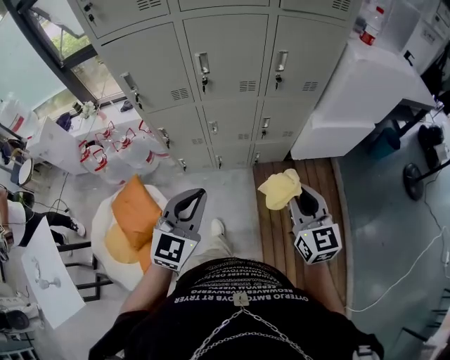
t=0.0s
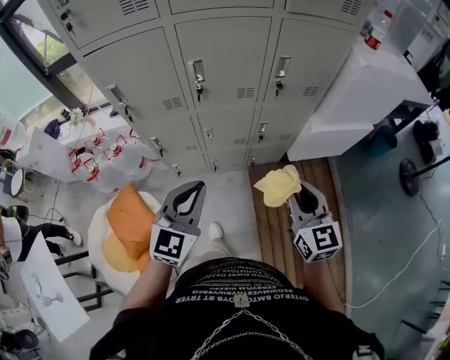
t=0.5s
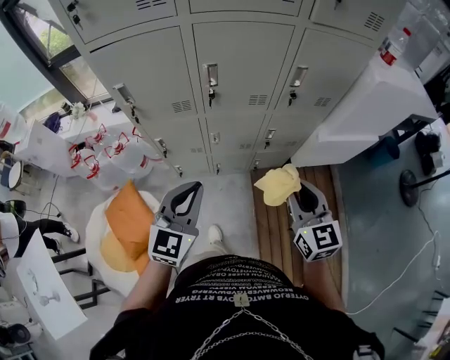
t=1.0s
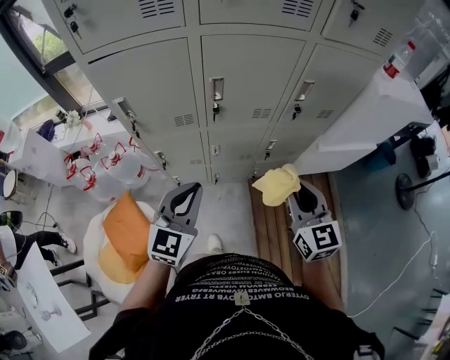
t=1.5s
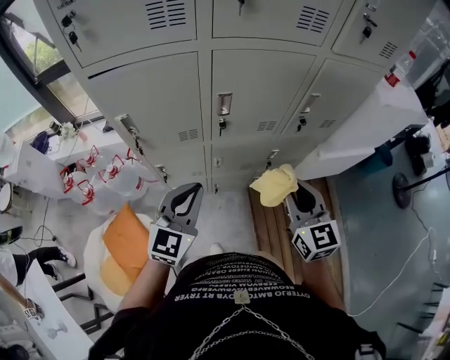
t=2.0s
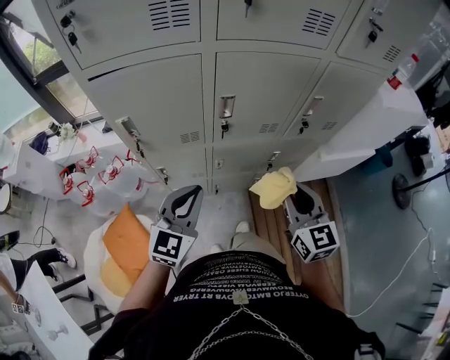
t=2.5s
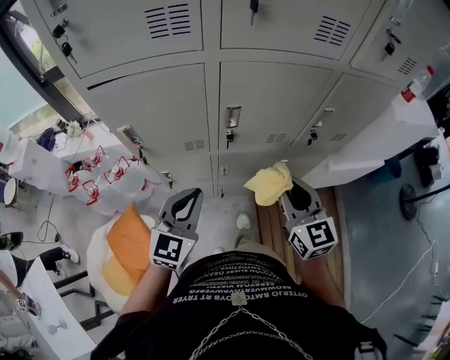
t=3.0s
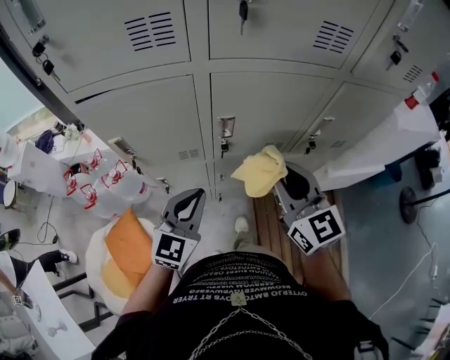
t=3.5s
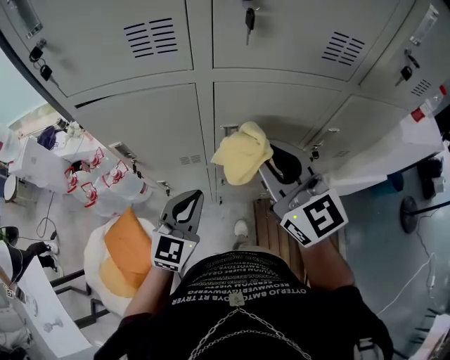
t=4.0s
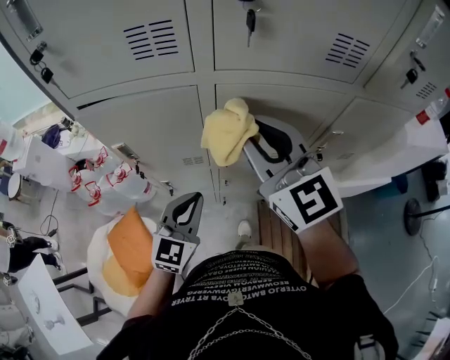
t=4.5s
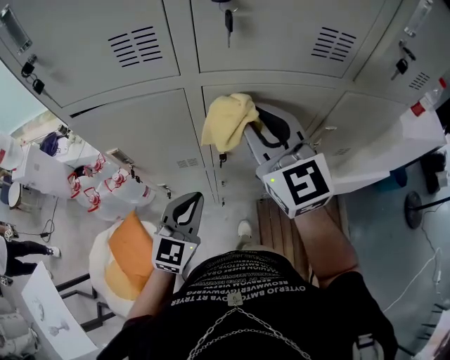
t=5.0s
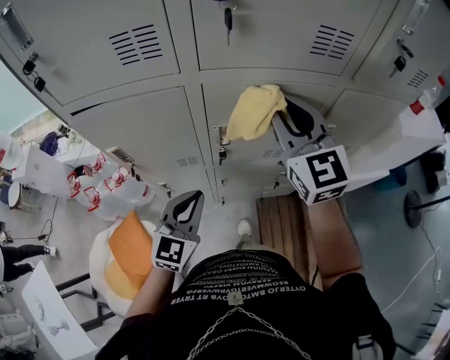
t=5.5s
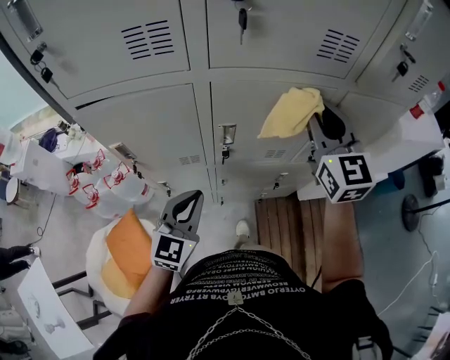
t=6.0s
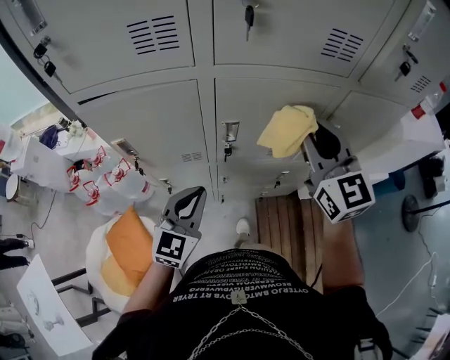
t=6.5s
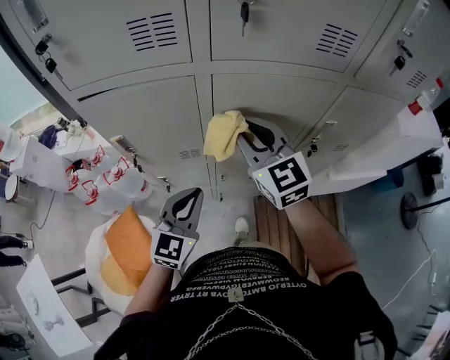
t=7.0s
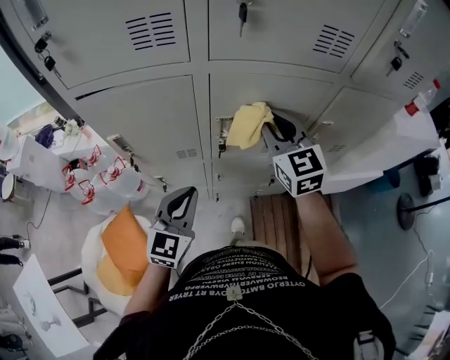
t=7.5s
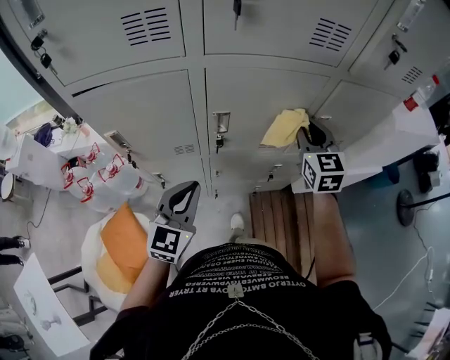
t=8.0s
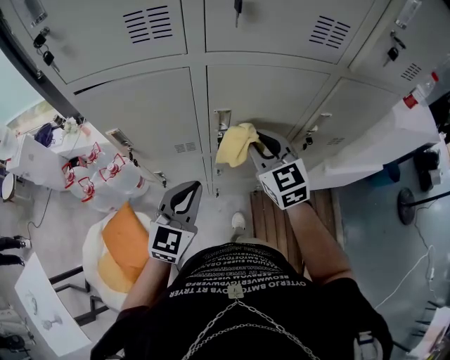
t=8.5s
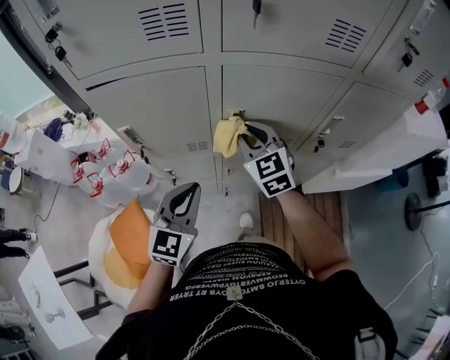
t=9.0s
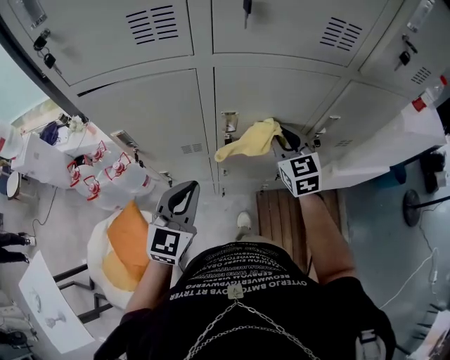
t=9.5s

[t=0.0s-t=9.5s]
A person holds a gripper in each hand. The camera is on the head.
t=0.0s to t=2.0s: The grippers both shift forward and to the left by some 25 cm.
t=2.0s to t=4.0s: The right gripper travels forward, upward and to the left by about 20 cm, and changes its angle by some 30 degrees. The left gripper moves forward, approximately 10 cm.
t=4.0s to t=5.5s: The right gripper travels forward and to the right by roughly 10 cm.
t=5.5s to t=7.5s: The right gripper goes left and right, approximately 15 cm each way, reversing 2 times.
t=7.5s to t=9.5s: The right gripper swings left and right, about 20 cm each way, with 2 reversals.

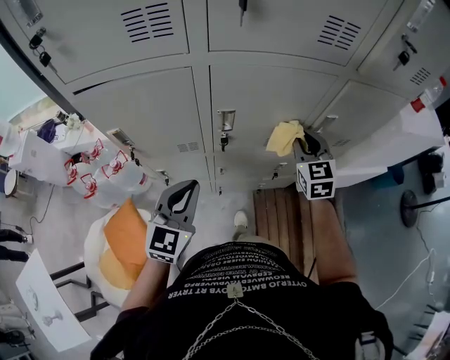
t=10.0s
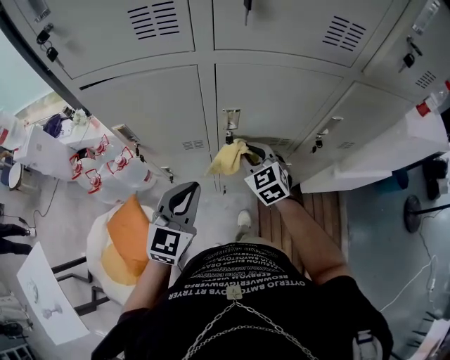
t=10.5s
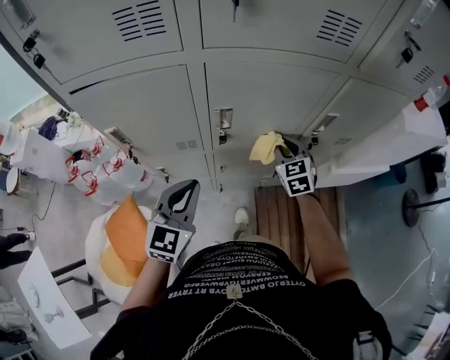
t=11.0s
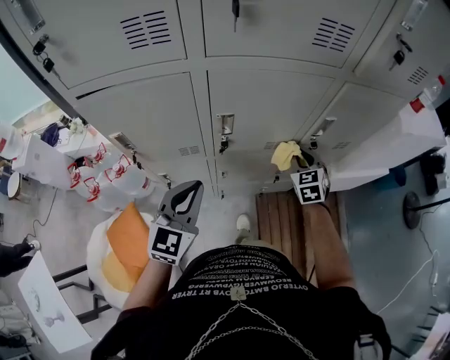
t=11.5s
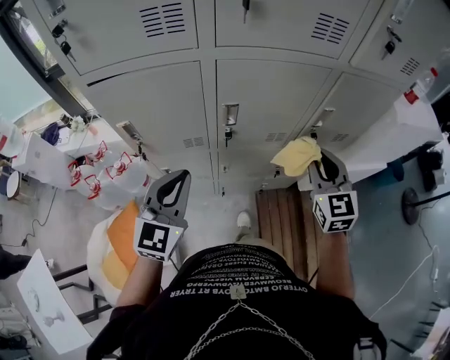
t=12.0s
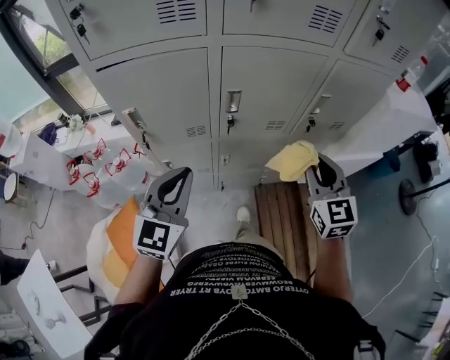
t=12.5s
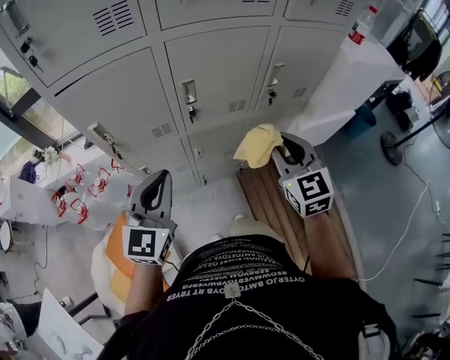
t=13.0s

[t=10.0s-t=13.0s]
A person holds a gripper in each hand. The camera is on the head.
t=10.0s to t=11.5s: The right gripper travels downward by approximately 10 cm, and travels to the left and back again, approximately 15 cm each way.
t=11.5s to t=13.0s: The left gripper shifts approximately 10 cm backward. Meanwhile the right gripper shifts about 25 cm backward and upward.

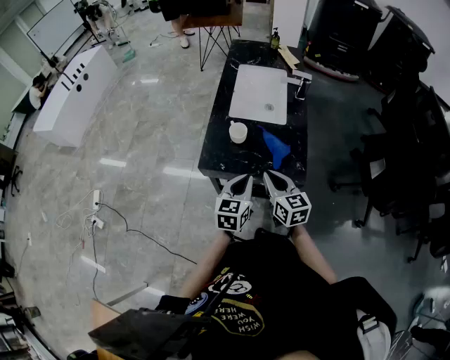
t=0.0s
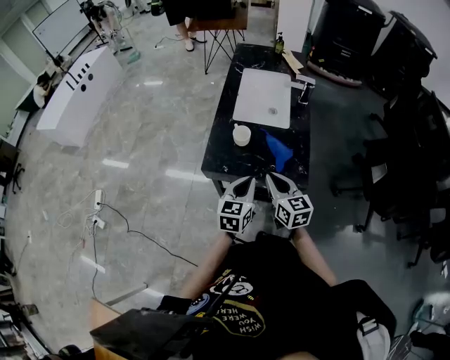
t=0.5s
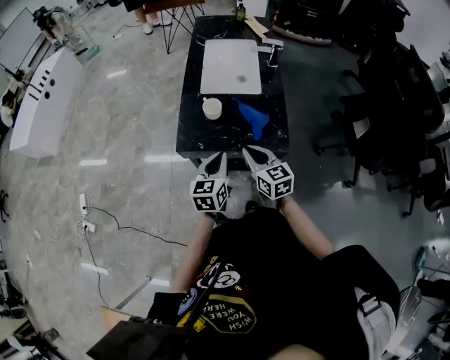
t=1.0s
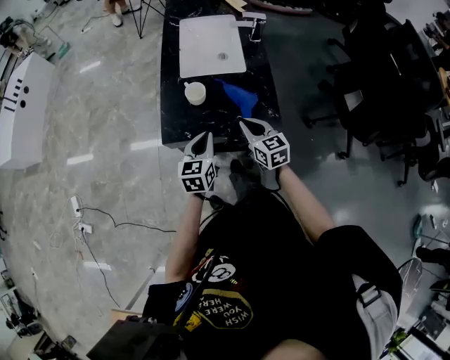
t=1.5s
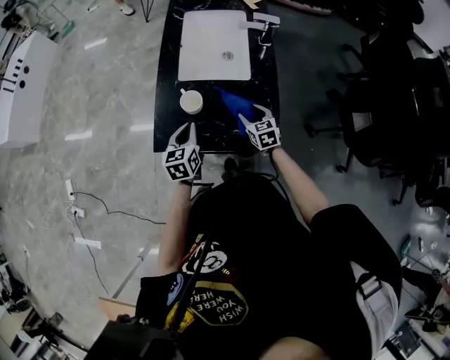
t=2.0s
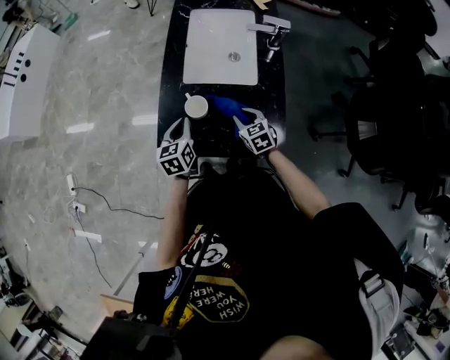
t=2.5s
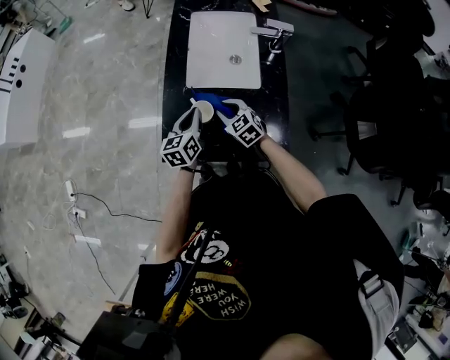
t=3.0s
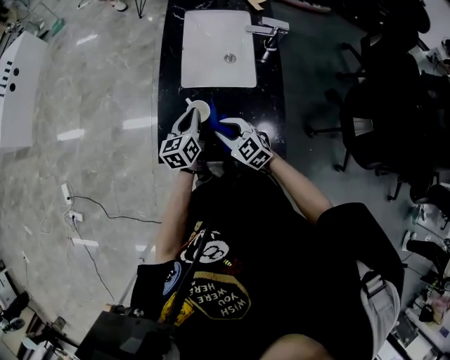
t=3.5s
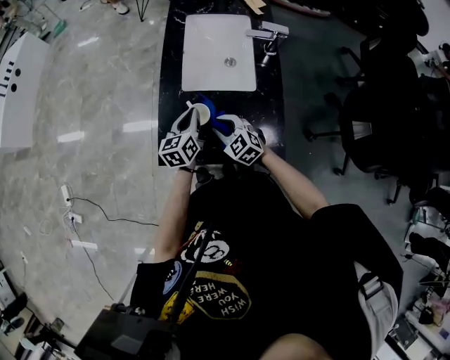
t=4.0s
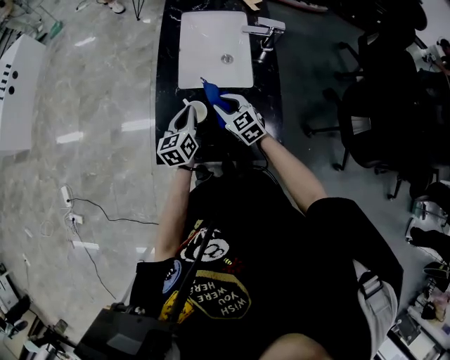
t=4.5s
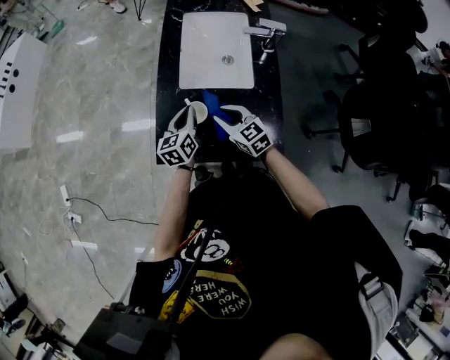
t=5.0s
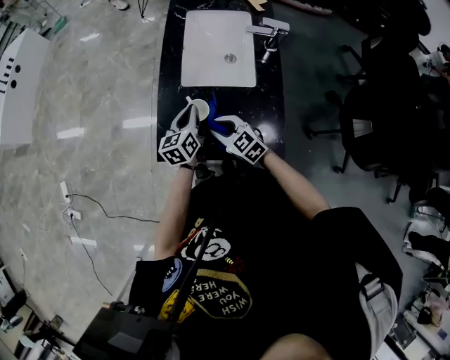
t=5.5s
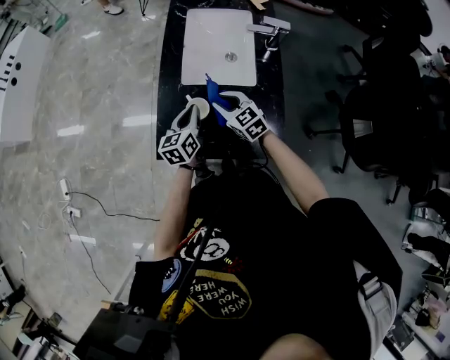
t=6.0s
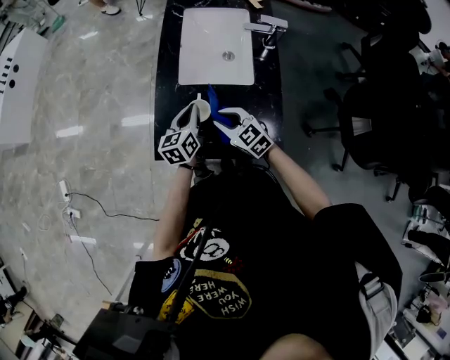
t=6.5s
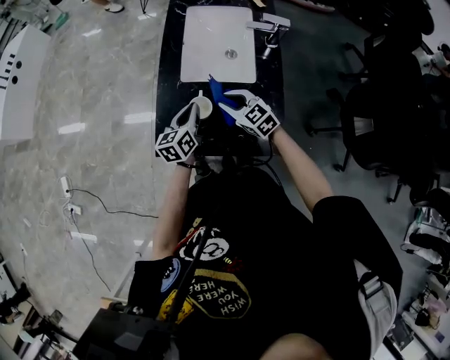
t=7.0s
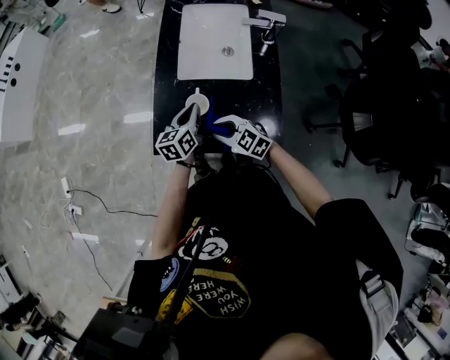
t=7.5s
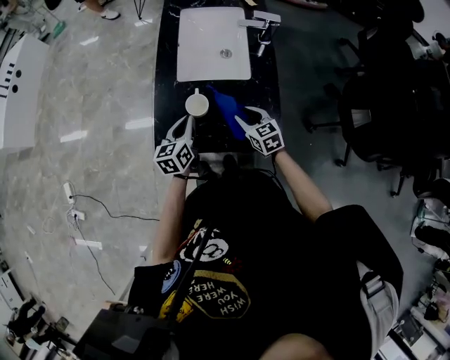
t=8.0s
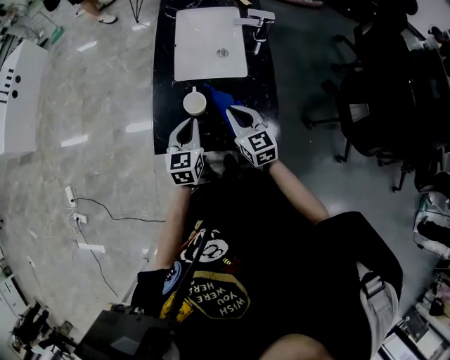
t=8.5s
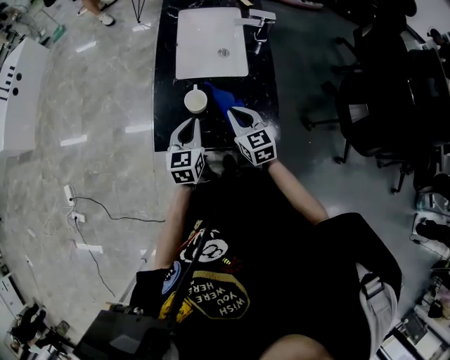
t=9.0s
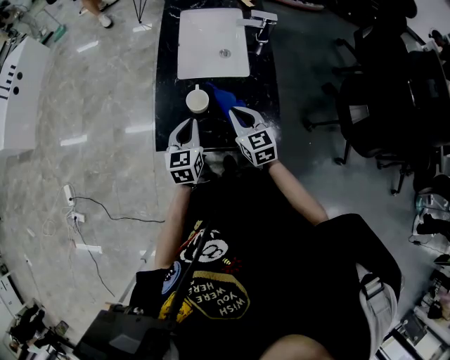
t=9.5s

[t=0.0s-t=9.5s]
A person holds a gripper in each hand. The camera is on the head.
t=0.0s to t=2.0s: The right gripper heads downward, forward and to the right, covering some 30 cm, changes its angle by approximately 30 degrees, and opens; the left gripper shifts about 20 cm forward and downward.
t=2.0s to t=4.0s: The left gripper heads forward, covering some 10 cm. The right gripper heads to the left, covering about 15 cm, swivels approximately 40 degrees, and closes.
t=4.0s to t=5.5s: The right gripper moves about 5 cm forward and comes back.
t=5.5s to t=7.5s: The right gripper moves forward and backward over roughly 10 cm, changing direction 3 times.
t=7.5s to t=9.5s: The right gripper moves upward and to the right, roughly 10 cm, and turns by about 40 degrees; the left gripper goes about 10 cm backward, and turns by approximately 20 degrees.

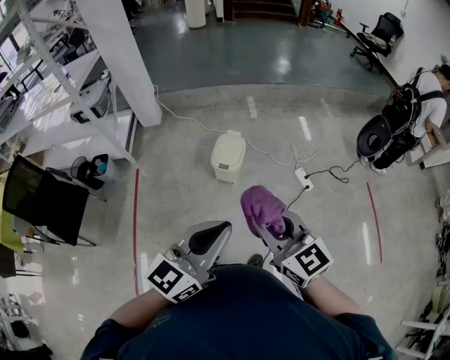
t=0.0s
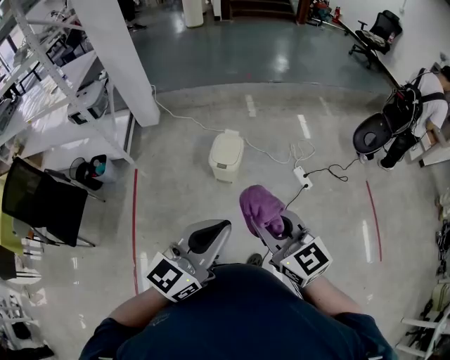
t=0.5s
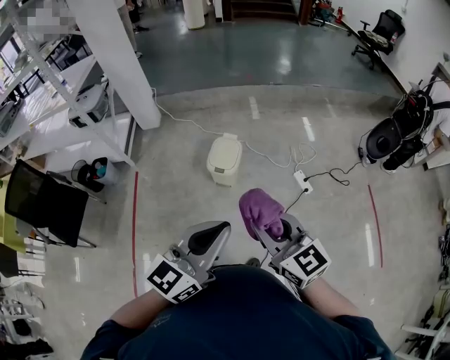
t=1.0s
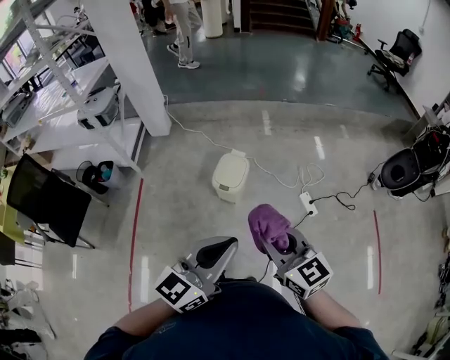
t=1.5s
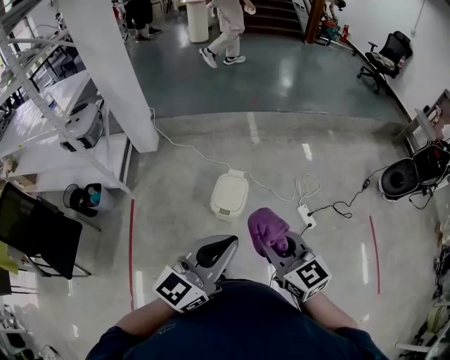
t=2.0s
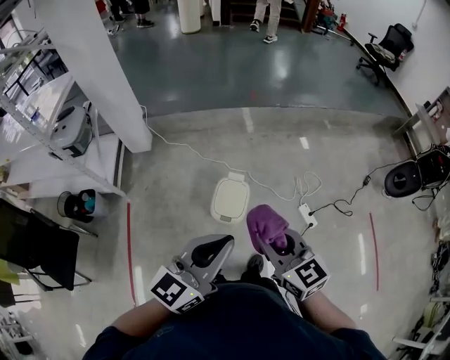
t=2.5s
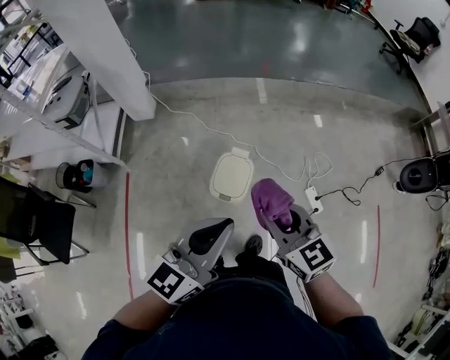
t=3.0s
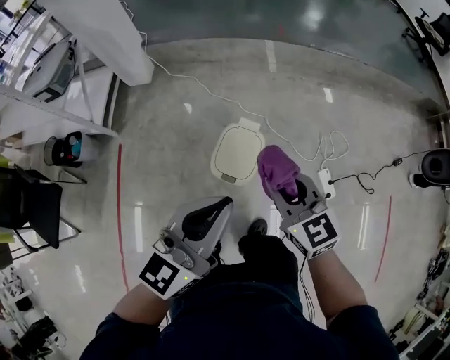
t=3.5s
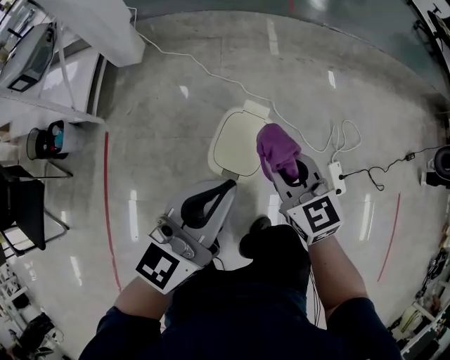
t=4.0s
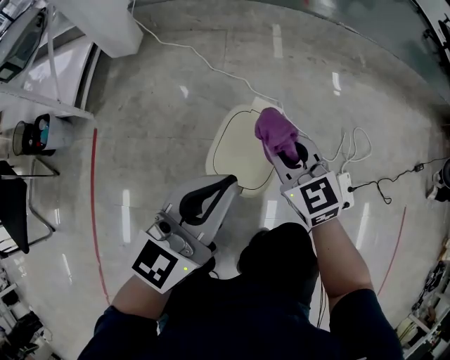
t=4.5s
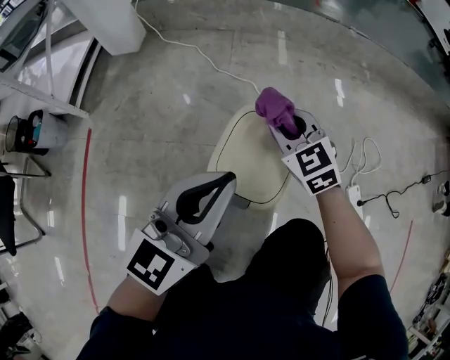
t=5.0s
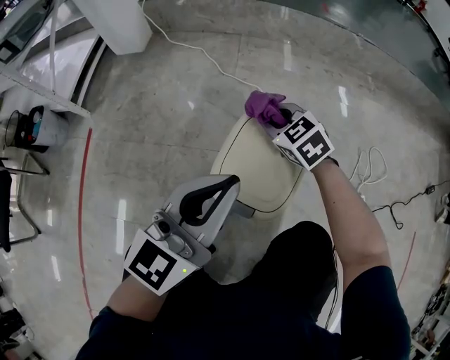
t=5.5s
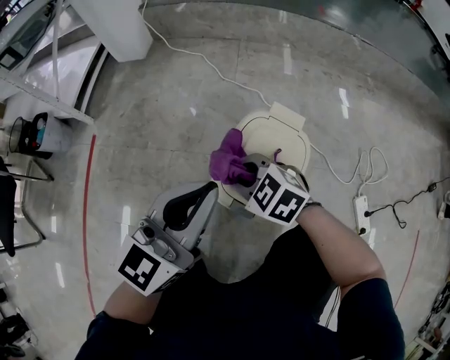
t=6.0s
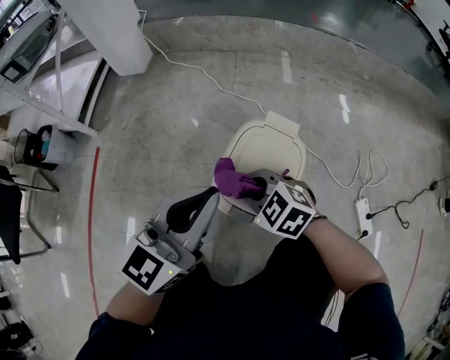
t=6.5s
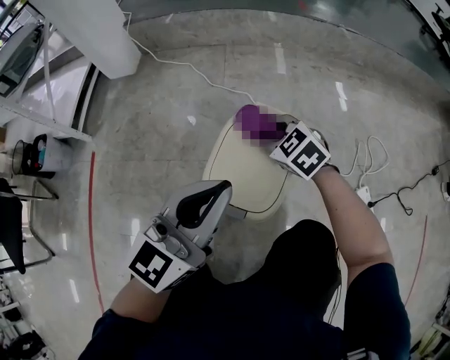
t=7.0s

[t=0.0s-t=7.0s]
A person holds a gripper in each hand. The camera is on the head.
t=0.0s to t=2.0s: The two grippers go roughly 25 cm forward.
t=2.0s to t=3.5s: Both grippers travel together forward and downward, roughly 30 cm.
t=3.5s to t=5.0s: The left gripper heads downward, covering approximately 35 cm. The right gripper moves downward and forward, some 40 cm, and changes its angle by some 20 degrees.
t=5.0s to t=7.0s: The right gripper goes approximately 10 cm downward, and goes backward and returns, some 15 cm each way.
